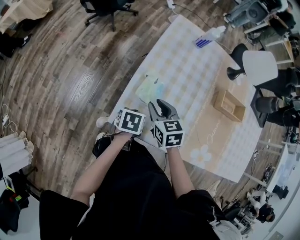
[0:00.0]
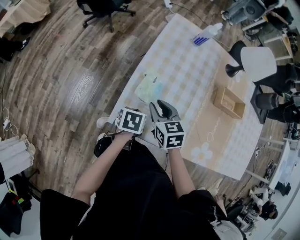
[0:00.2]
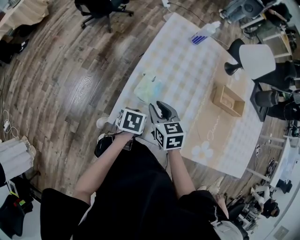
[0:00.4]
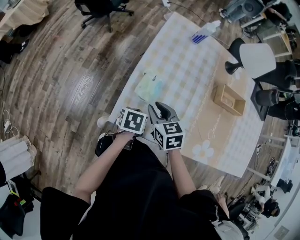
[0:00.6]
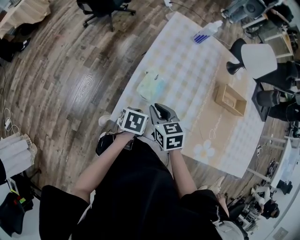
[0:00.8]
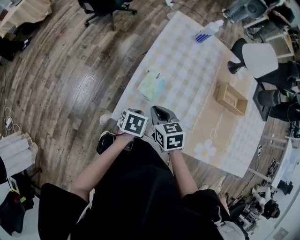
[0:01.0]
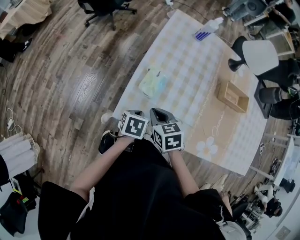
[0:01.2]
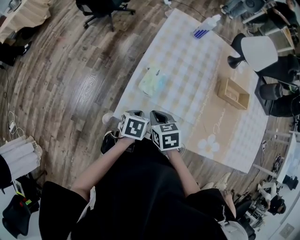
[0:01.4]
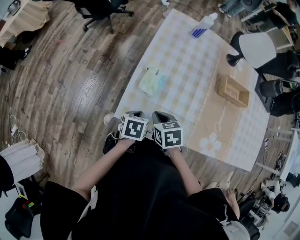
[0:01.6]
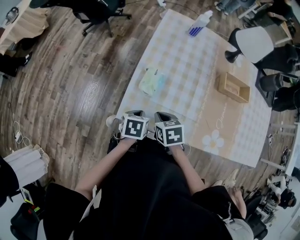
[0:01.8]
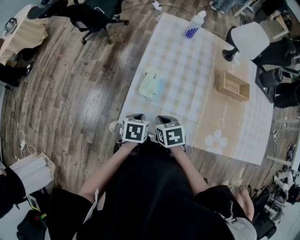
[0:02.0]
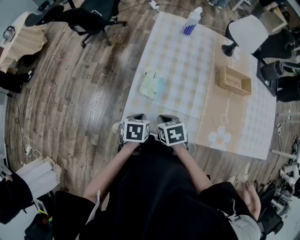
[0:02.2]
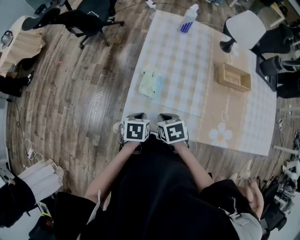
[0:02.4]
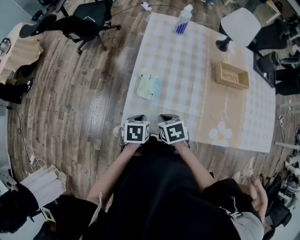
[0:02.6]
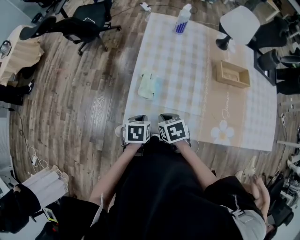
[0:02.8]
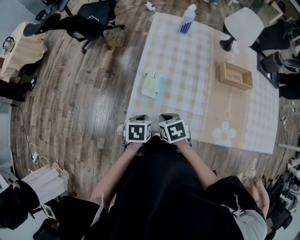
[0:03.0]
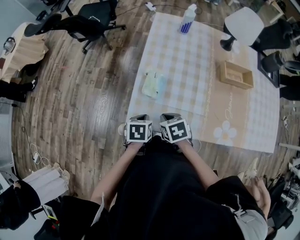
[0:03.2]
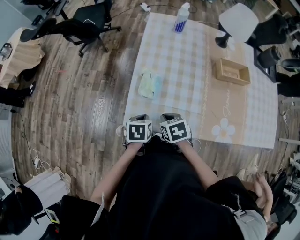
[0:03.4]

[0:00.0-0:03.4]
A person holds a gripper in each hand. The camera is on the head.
0.0 to 1.6 s: The right gripper moves backward, some 10 cm, and closes its fingers.
1.6 to 3.4 s: The grippers make only small movements.

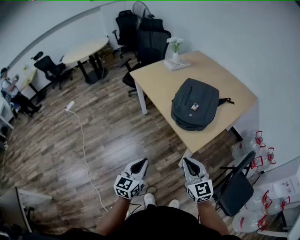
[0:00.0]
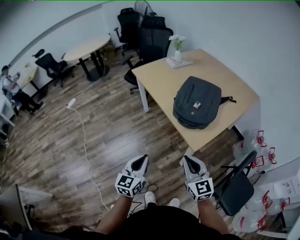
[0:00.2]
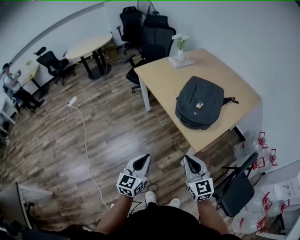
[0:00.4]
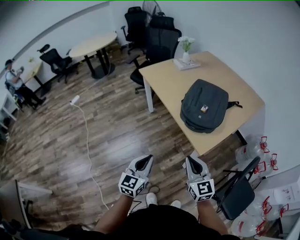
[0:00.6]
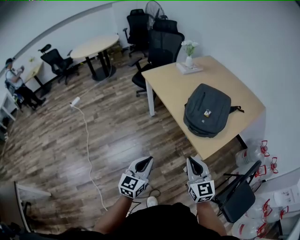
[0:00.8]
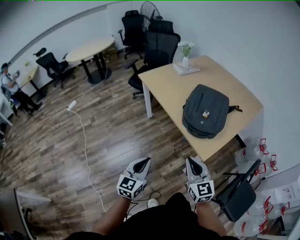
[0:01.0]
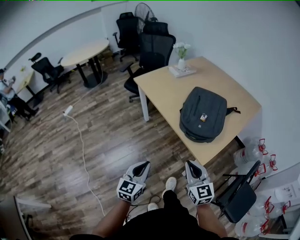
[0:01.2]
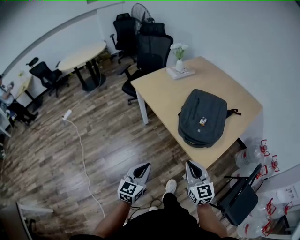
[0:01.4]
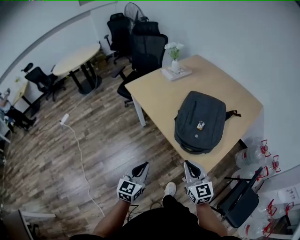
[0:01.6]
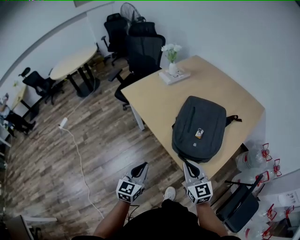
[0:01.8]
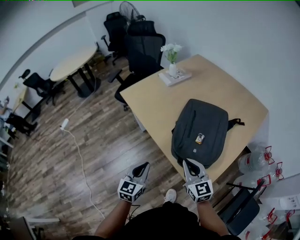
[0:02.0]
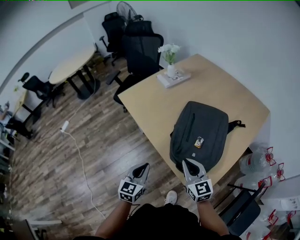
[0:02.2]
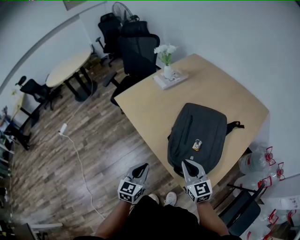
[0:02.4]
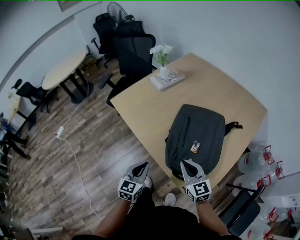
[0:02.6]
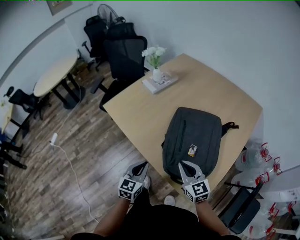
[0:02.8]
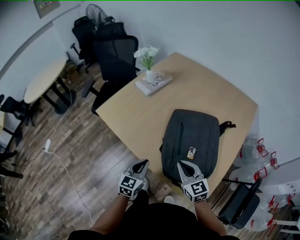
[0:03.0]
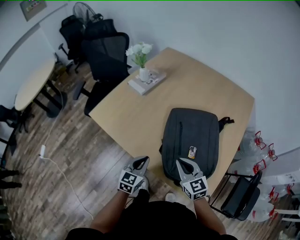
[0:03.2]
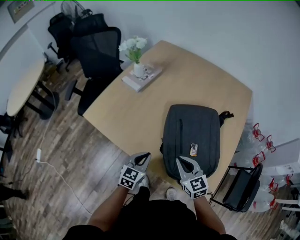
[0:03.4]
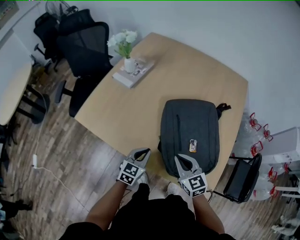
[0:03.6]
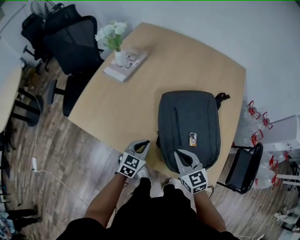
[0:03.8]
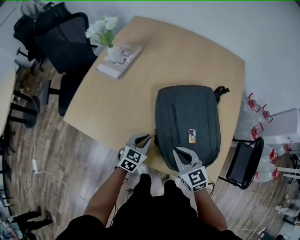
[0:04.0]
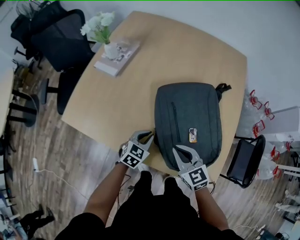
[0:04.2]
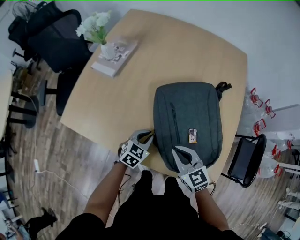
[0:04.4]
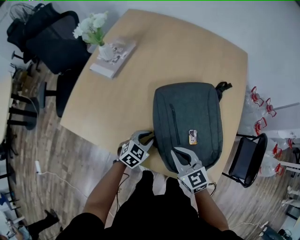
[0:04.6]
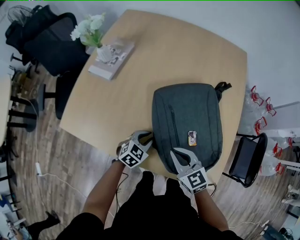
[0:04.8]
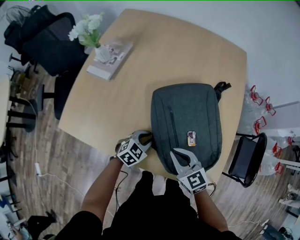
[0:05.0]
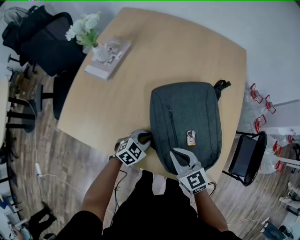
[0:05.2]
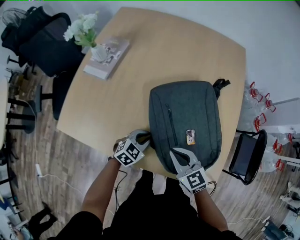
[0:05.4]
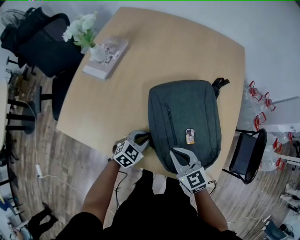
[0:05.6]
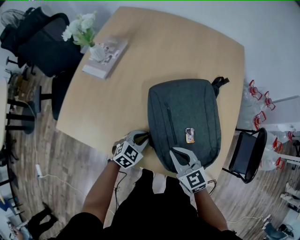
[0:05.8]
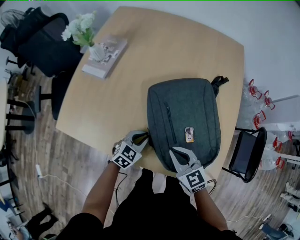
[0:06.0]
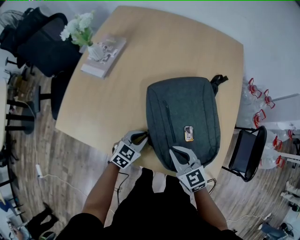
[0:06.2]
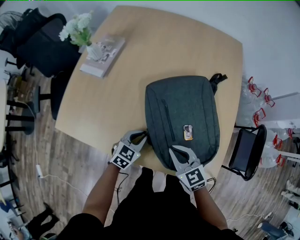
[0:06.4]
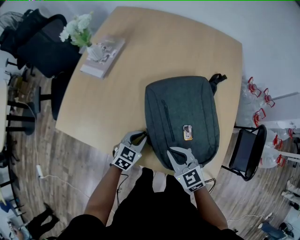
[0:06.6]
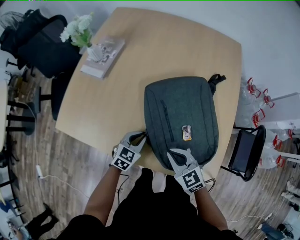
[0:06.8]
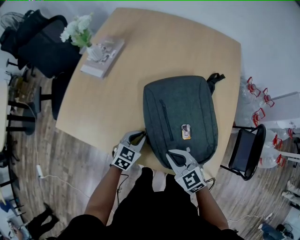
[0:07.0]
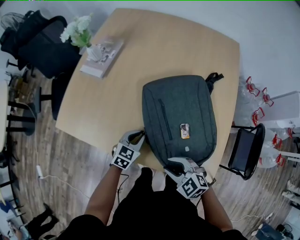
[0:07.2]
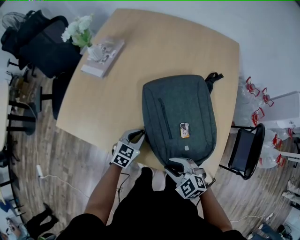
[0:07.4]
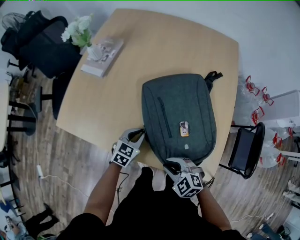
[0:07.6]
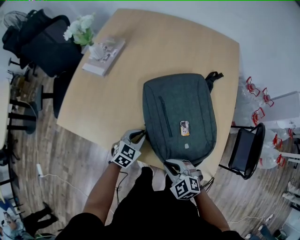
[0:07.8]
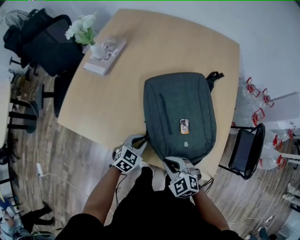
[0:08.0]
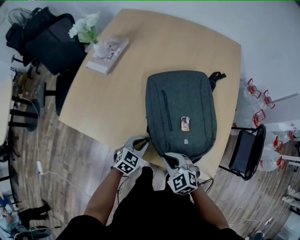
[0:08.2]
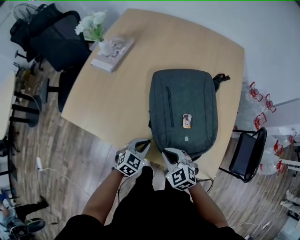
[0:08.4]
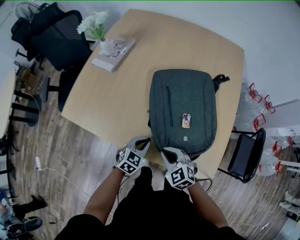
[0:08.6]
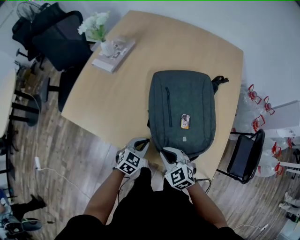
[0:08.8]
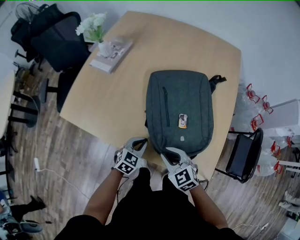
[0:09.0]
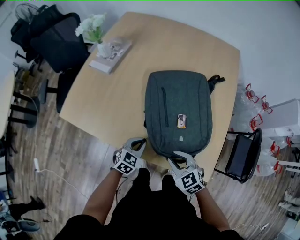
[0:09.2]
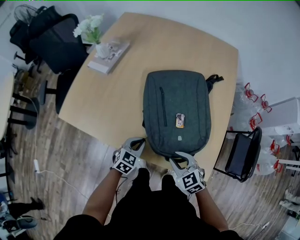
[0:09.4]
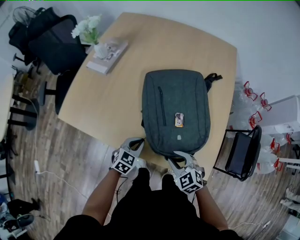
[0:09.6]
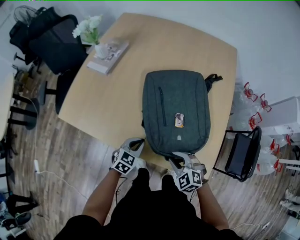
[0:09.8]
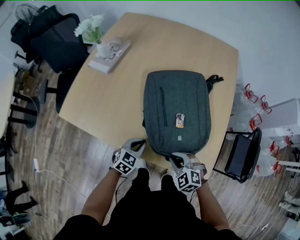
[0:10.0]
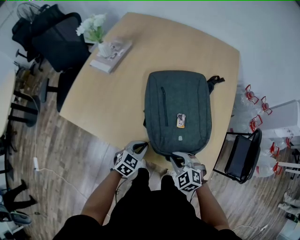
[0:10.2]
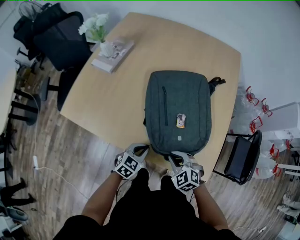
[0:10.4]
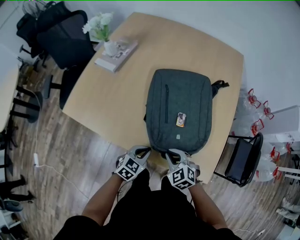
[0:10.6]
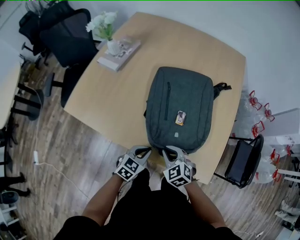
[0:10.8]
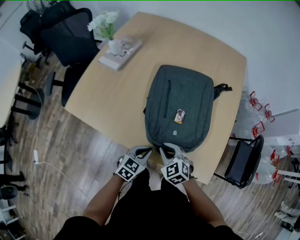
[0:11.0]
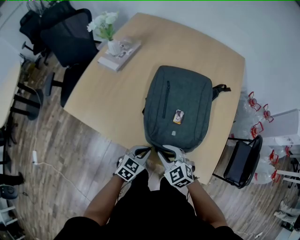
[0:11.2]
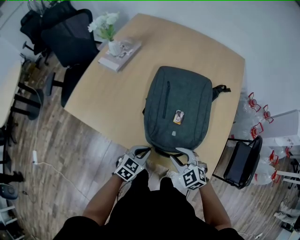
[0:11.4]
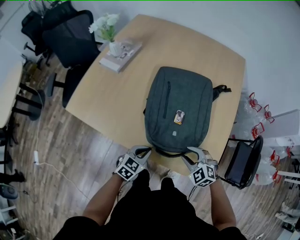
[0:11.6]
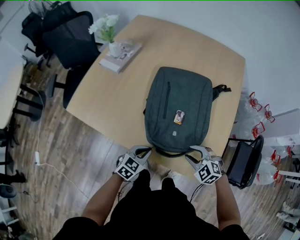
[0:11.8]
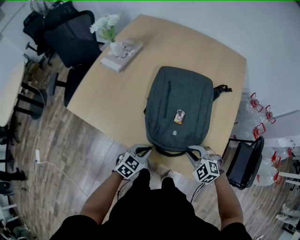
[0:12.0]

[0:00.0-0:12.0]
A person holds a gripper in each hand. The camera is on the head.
0.0 to 1.6 s: Both grippers move forward, some 15 cm.
1.6 to 3.0 s: The two grippers go roughly 25 cm forward.
3.0 to 4.4 s: The left gripper moves forward and downward, roughly 20 cm, and rotates some 40 degrees. Meanwhile the right gripper heads downward, covering approximately 5 cm.
4.4 to 6.0 s: The grippers move only a little.
6.0 to 7.6 s: The right gripper shifts about 10 cm backward, turns by about 30 degrees, and opens.
7.6 to 9.0 s: The left gripper heads backward, covering some 5 cm.
9.0 to 10.4 s: The right gripper ends up roughly 5 cm from where it was.
10.4 to 12.0 s: The right gripper travels to the right by approximately 5 cm, and opens, then closes once more.

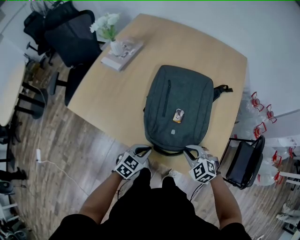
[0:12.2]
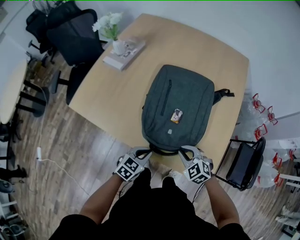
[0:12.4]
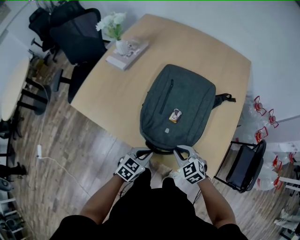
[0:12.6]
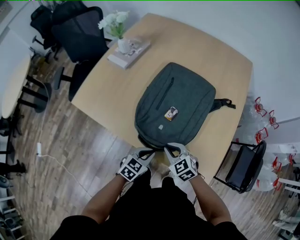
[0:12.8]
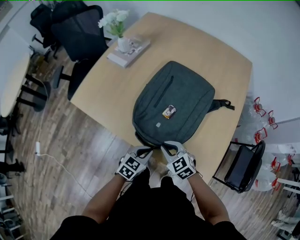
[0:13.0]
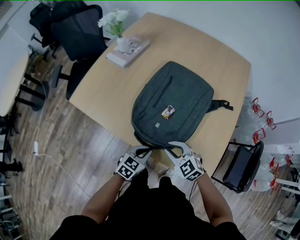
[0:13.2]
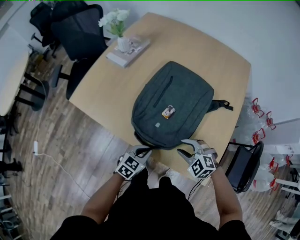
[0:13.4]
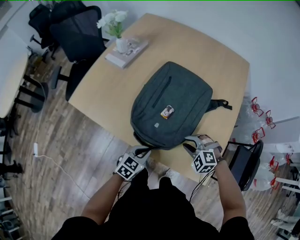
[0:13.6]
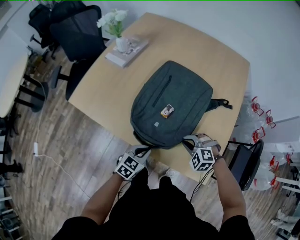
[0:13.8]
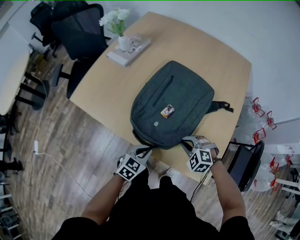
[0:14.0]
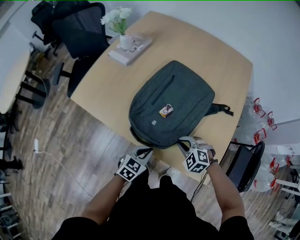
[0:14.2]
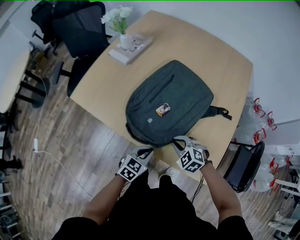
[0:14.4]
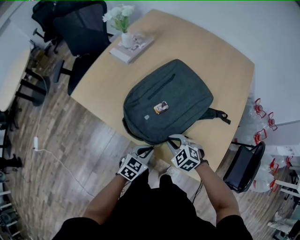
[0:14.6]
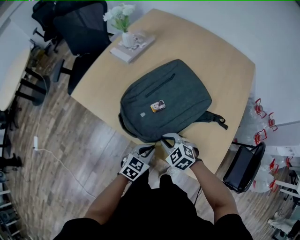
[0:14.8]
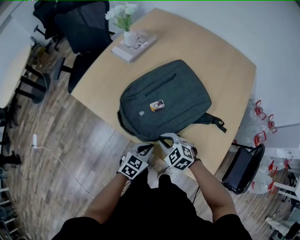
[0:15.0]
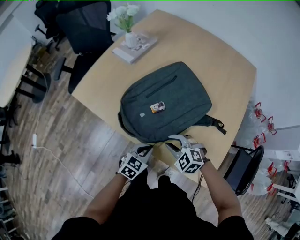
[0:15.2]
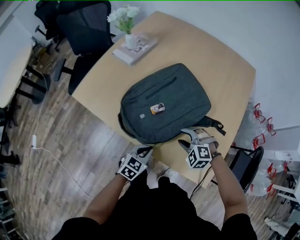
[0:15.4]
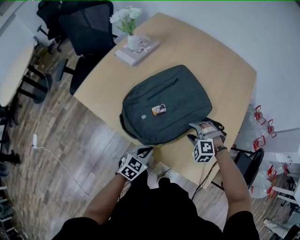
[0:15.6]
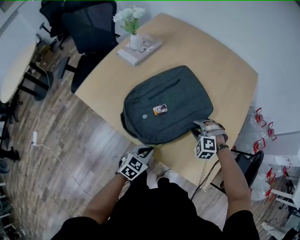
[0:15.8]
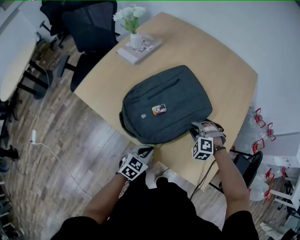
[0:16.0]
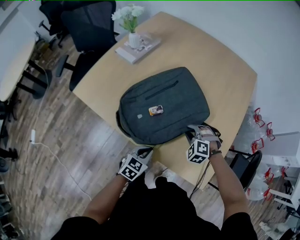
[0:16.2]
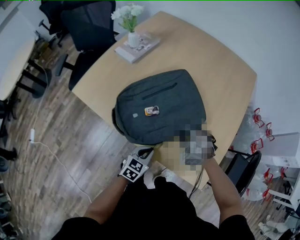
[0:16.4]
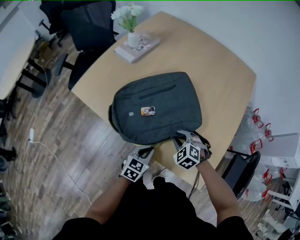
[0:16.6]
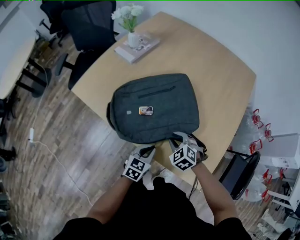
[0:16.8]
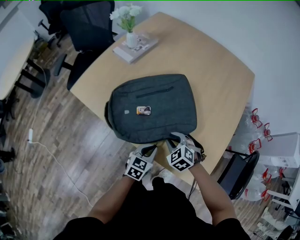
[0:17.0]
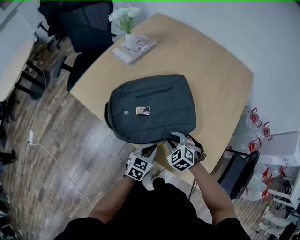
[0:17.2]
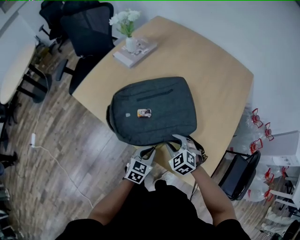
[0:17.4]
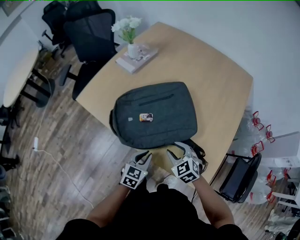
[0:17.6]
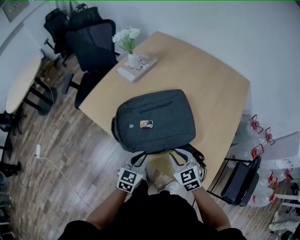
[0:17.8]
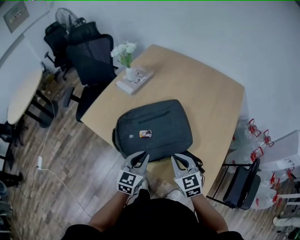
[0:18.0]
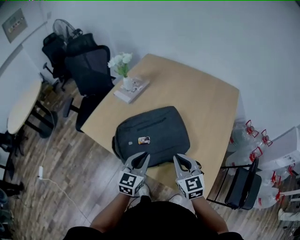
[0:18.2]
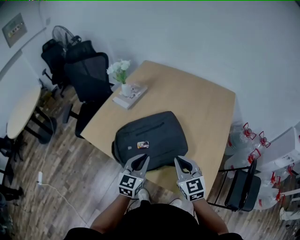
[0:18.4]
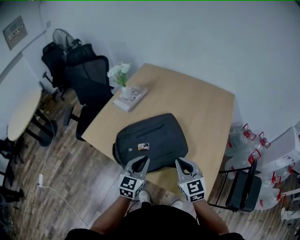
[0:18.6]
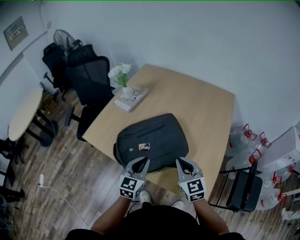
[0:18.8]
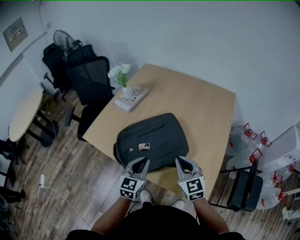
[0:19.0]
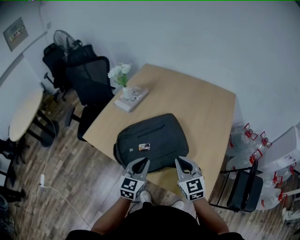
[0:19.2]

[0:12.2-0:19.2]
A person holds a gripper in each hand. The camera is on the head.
12.2 to 13.6 s: The right gripper moves some 10 cm to the left and comes back, and changes its angle by approximately 30 degrees.
13.6 to 15.0 s: The right gripper travels to the left by approximately 15 cm, and swivels about 30 degrees.
15.0 to 16.4 s: The right gripper is displaced to the right and forward by roughly 15 cm, rotates roughly 20 degrees, and opens and closes again.
16.4 to 17.8 s: The right gripper moves upward and backward, some 10 cm, and turns by approximately 40 degrees, while the left gripper is displaced upward by approximately 10 cm.
17.8 to 19.2 s: Both grippers move upward, about 10 cm. The right gripper rotates roughly 20 degrees, and closes its fingers.

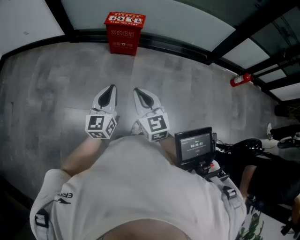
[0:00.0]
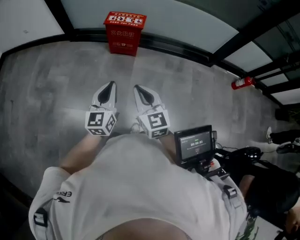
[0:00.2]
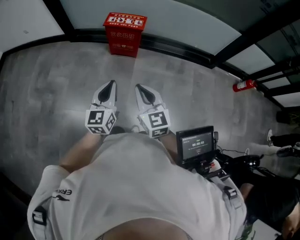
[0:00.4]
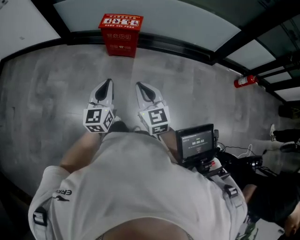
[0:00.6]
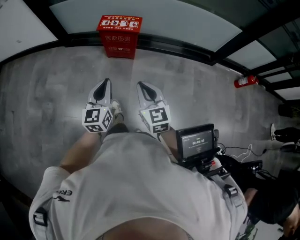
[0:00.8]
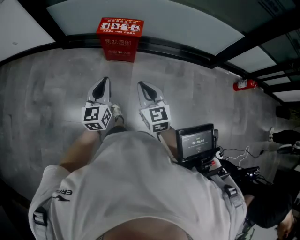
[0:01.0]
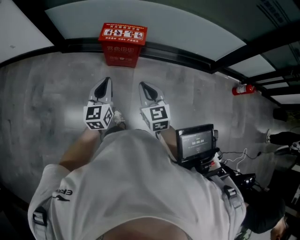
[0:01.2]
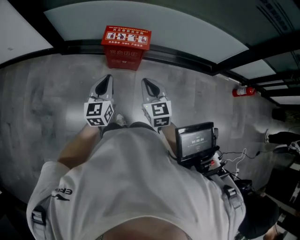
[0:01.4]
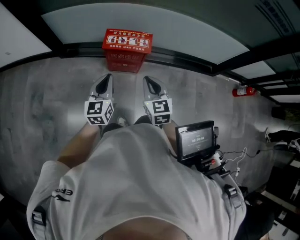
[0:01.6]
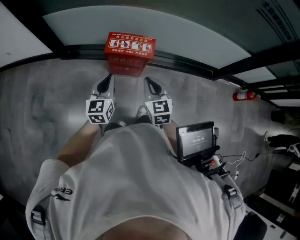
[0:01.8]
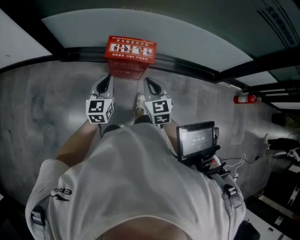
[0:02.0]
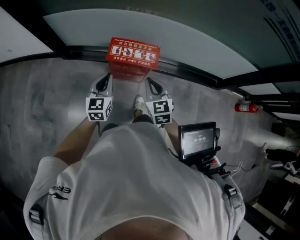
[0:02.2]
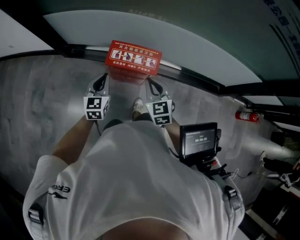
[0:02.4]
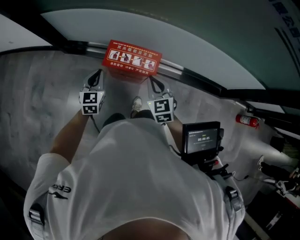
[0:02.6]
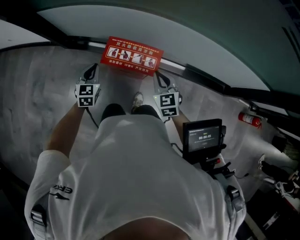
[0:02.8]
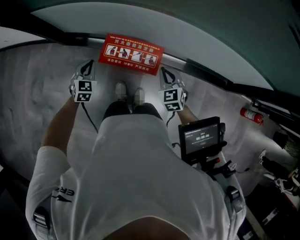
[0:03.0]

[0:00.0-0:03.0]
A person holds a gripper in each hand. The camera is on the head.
0.0 to 1.6 s: The pair of grippers is taken forward, roughly 40 cm.
1.6 to 3.0 s: The right gripper is displaced forward, downward and to the right by about 35 cm, and rotates roughly 20 degrees. Meanwhile the left gripper is displaced forward and downward by some 35 cm, and rotates some 40 degrees.
